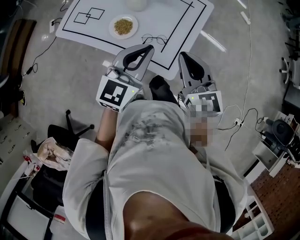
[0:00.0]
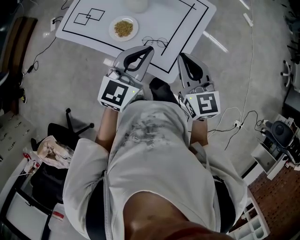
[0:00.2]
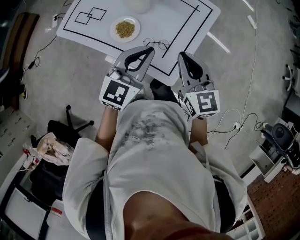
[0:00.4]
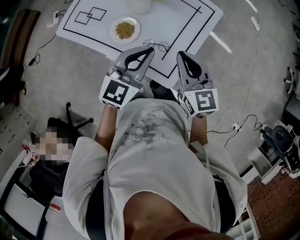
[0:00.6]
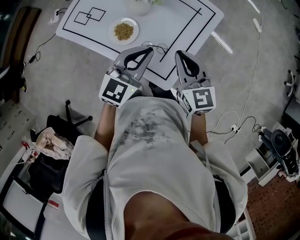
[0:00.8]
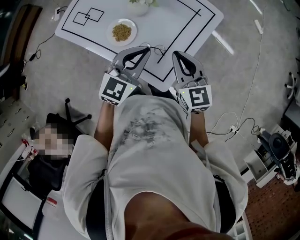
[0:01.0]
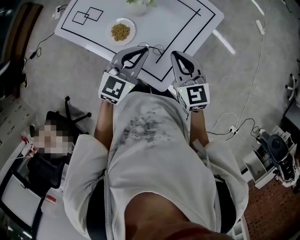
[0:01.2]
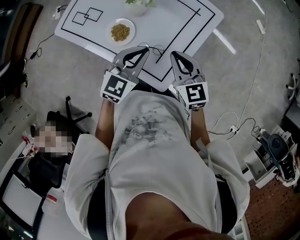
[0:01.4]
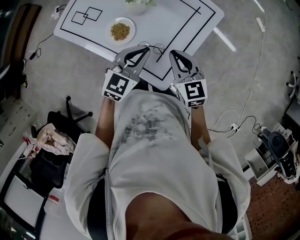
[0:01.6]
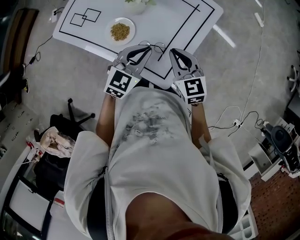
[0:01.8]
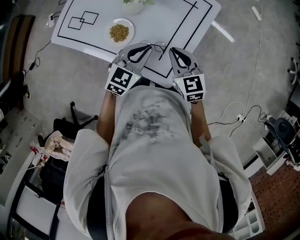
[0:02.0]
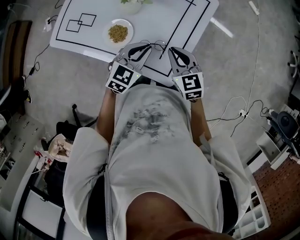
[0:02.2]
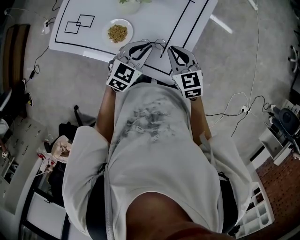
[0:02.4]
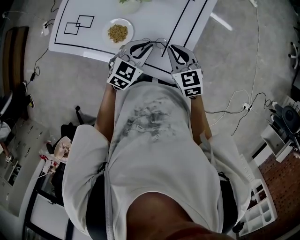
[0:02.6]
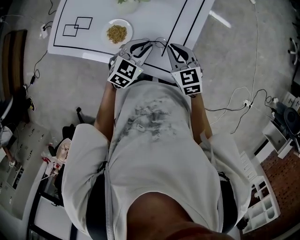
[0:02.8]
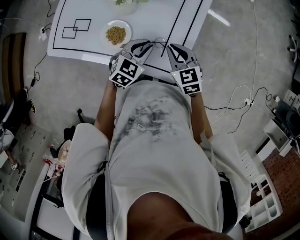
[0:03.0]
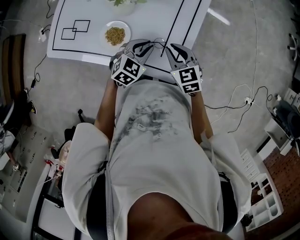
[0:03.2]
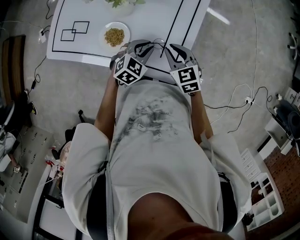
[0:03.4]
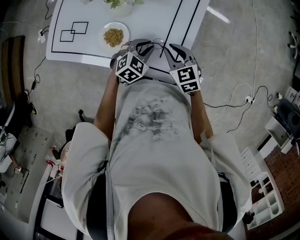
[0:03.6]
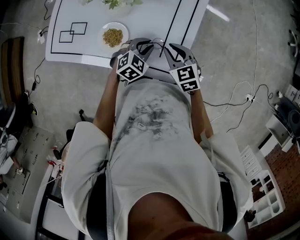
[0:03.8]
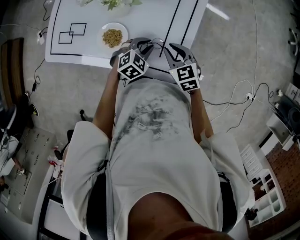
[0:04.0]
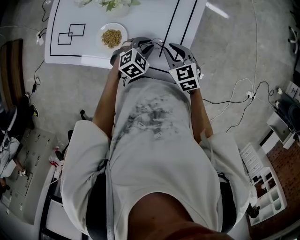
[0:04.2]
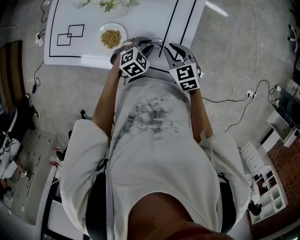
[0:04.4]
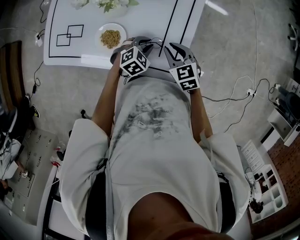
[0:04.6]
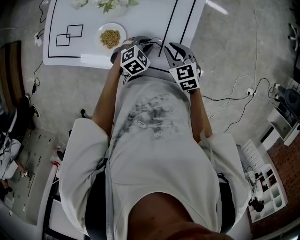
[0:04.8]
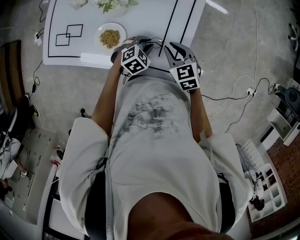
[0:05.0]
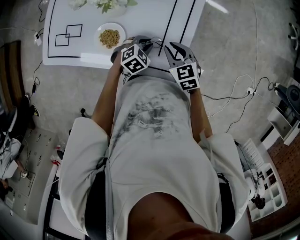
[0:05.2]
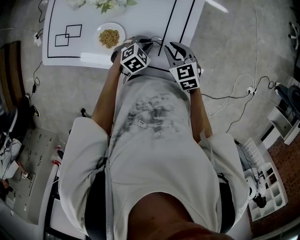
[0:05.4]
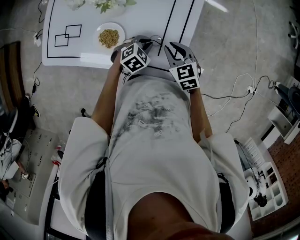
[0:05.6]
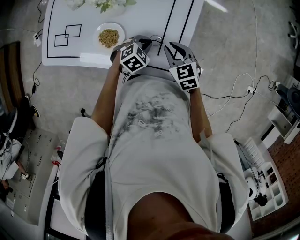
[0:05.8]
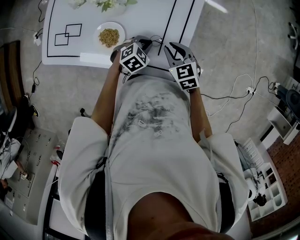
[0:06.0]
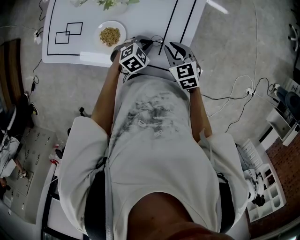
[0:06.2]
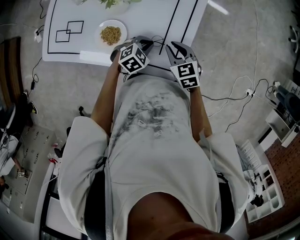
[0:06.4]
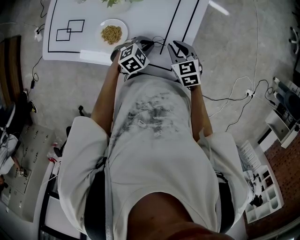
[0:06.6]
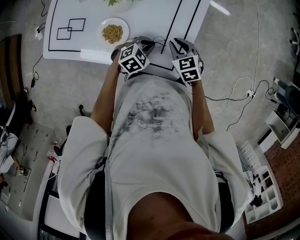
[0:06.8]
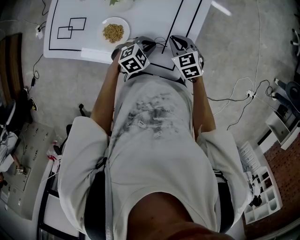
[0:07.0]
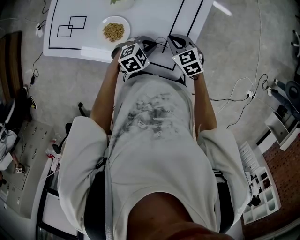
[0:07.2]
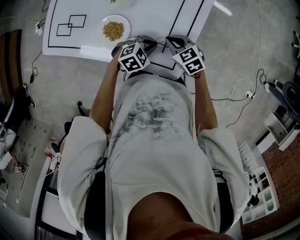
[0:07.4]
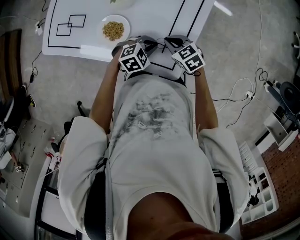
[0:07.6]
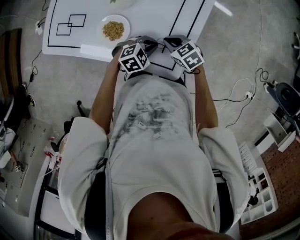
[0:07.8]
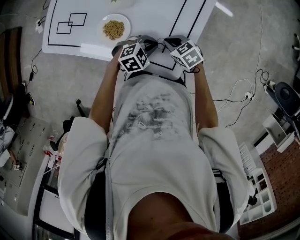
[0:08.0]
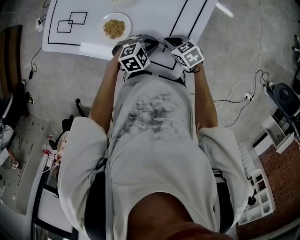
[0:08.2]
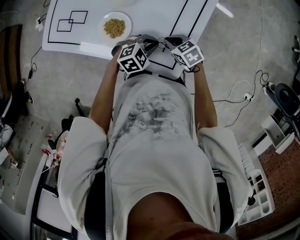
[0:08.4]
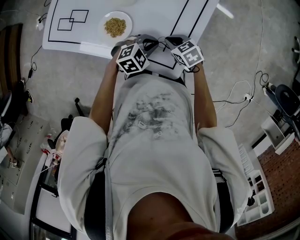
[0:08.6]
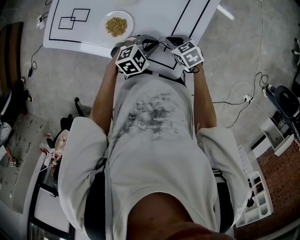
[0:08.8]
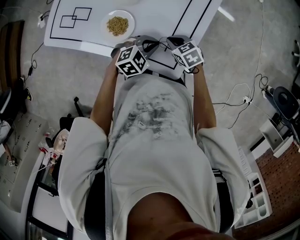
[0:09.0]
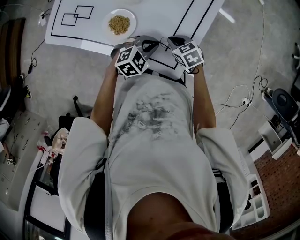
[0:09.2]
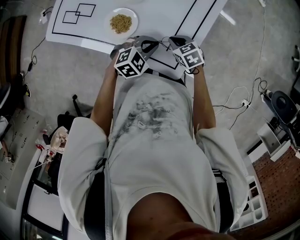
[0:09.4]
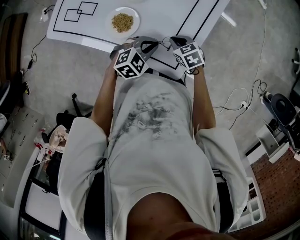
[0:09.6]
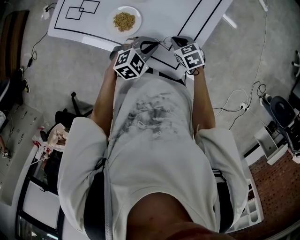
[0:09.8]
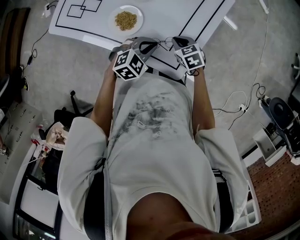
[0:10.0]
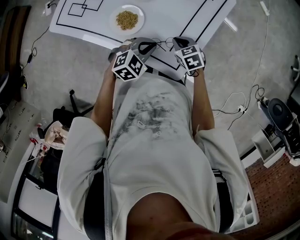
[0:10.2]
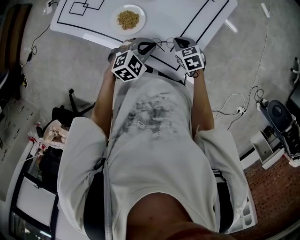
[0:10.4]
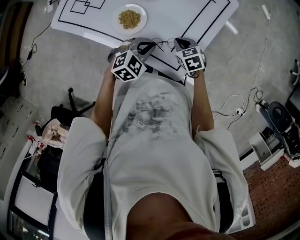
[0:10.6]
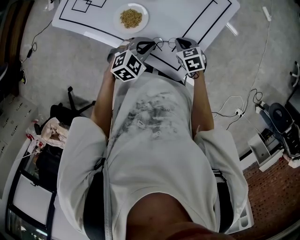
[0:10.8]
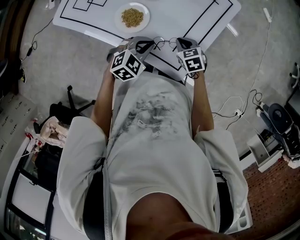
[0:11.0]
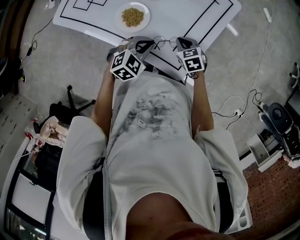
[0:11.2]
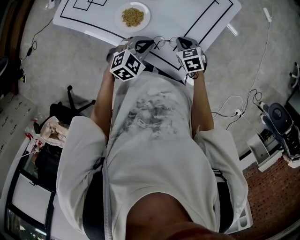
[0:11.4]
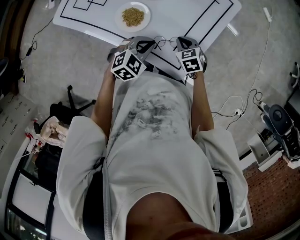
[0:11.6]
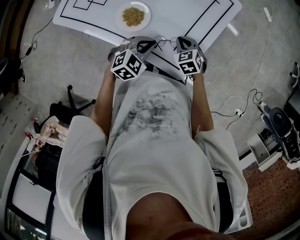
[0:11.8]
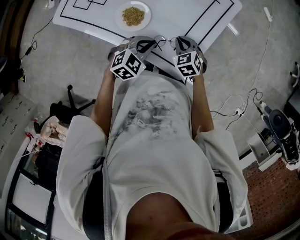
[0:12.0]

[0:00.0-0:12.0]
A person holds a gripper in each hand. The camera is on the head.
0:00.0 to 0:01.6: Both grippers travel together downward and forward, approximately 15 cm.
0:01.6 to 0:03.0: The grippers both shift downward by roughly 10 cm. The left gripper turns by approximately 20 degrees.
0:03.0 to 0:04.4: The left gripper travels downward by approximately 10 cm, and turns by some 20 degrees.
0:04.4 to 0:06.0: There are only small adjustments of the grippers.
0:06.0 to 0:07.6: The right gripper shifts by roughly 5 cm, and rotates roughly 20 degrees.
0:07.6 to 0:09.0: The grippers make only small movements.
0:09.0 to 0:10.4: The left gripper moves roughly 5 cm.
0:10.4 to 0:12.0: The grippers make only small movements.

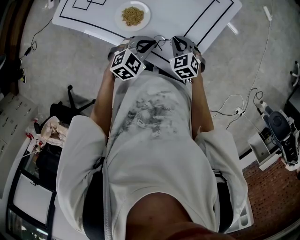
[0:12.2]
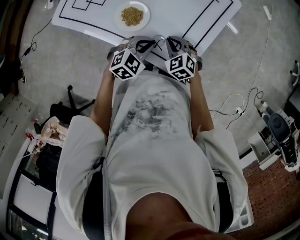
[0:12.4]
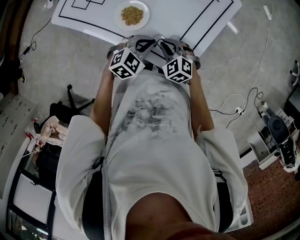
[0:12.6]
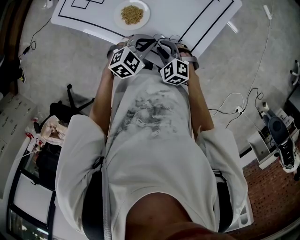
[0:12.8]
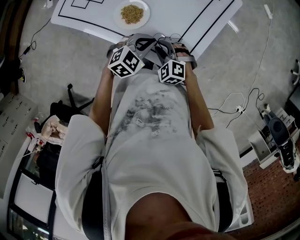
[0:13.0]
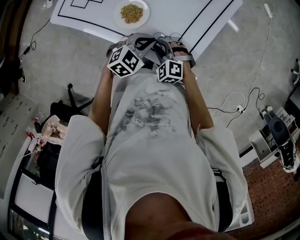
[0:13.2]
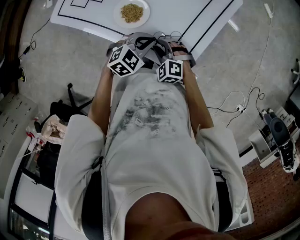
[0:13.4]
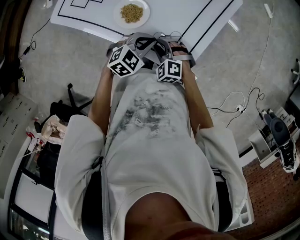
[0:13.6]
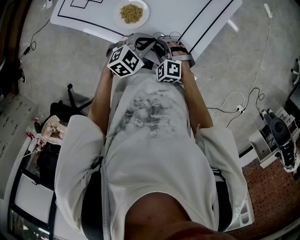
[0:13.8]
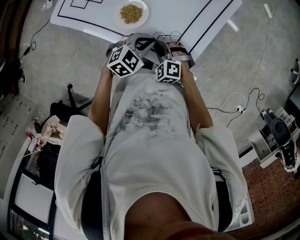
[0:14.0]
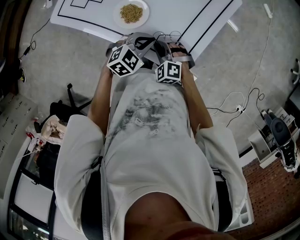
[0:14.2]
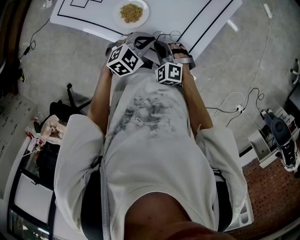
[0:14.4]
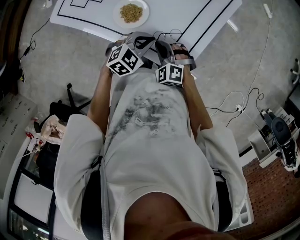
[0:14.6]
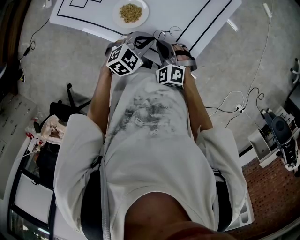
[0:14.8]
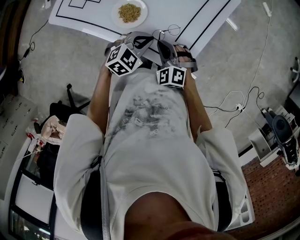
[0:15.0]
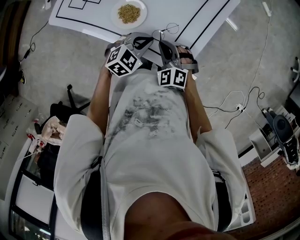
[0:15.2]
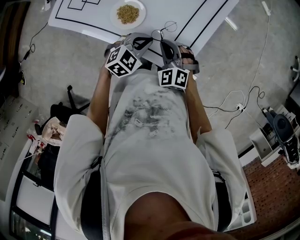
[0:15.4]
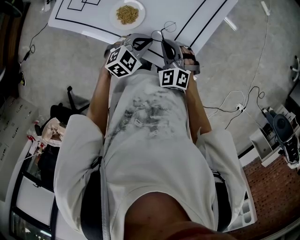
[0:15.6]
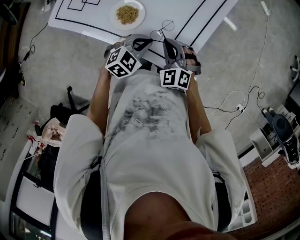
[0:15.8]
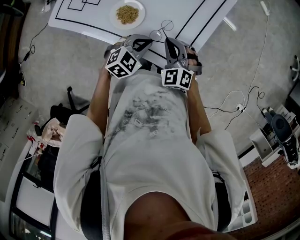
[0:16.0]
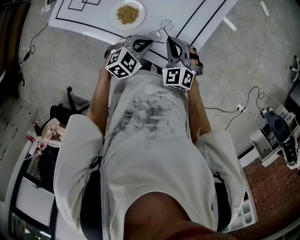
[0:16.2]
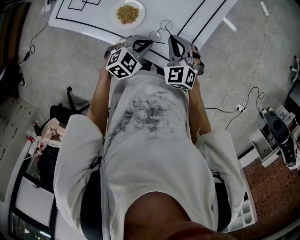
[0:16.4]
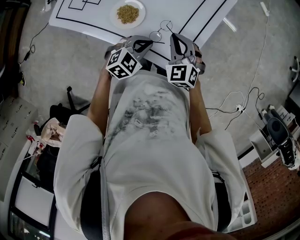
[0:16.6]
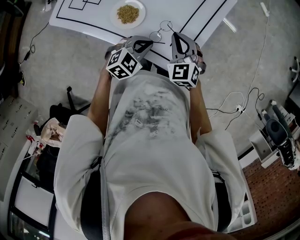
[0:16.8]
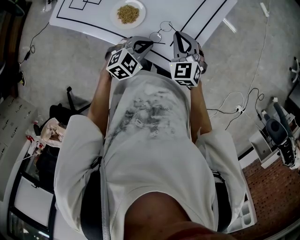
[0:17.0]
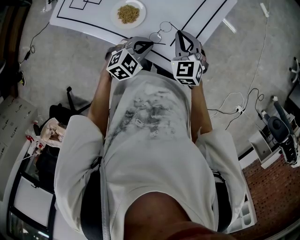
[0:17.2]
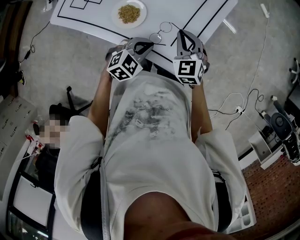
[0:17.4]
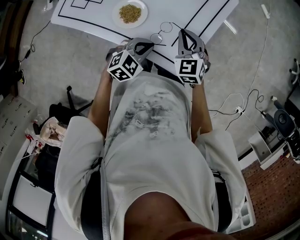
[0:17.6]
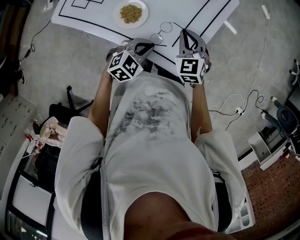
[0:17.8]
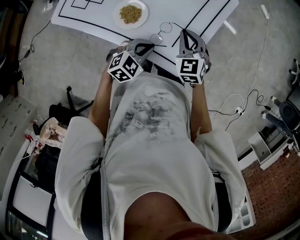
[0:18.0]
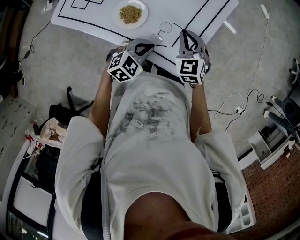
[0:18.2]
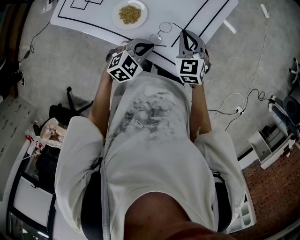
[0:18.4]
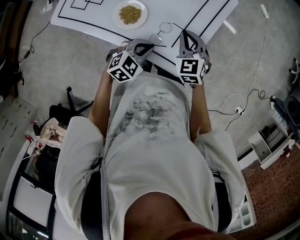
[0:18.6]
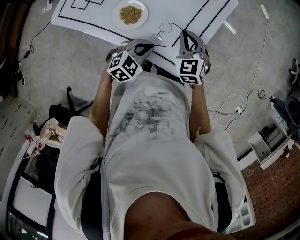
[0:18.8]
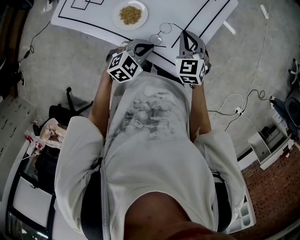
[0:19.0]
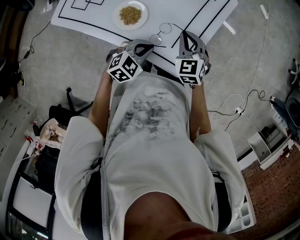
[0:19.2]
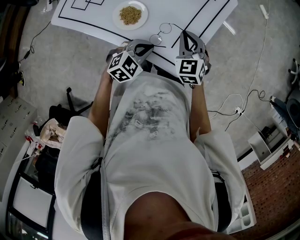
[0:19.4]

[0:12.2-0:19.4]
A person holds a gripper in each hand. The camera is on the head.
0:12.2 to 0:13.6: The right gripper is displaced backward and to the left by roughly 10 cm, changes its angle by roughly 30 degrees, and opens its fingers.
0:13.6 to 0:15.0: The right gripper goes some 5 cm upward, and closes its fingers.
0:15.0 to 0:16.6: The right gripper heads upward and forward, covering about 10 cm, and changes its angle by roughly 20 degrees.
0:16.6 to 0:18.0: The grippers stay close to where they were, moving slightly.
0:18.0 to 0:19.4: Both grippers stay about where they are.

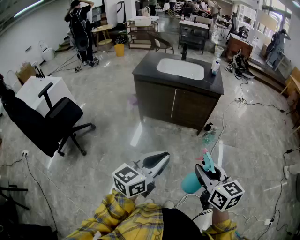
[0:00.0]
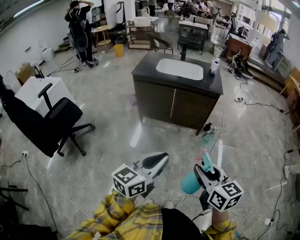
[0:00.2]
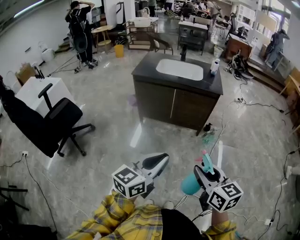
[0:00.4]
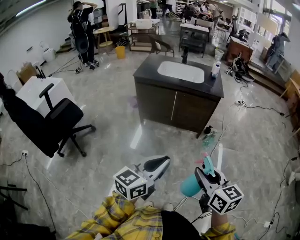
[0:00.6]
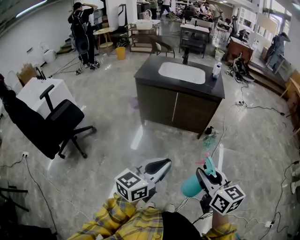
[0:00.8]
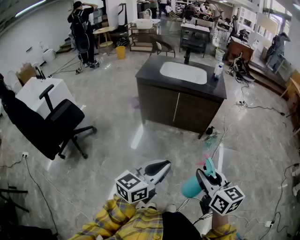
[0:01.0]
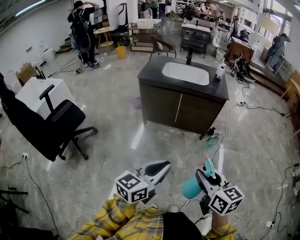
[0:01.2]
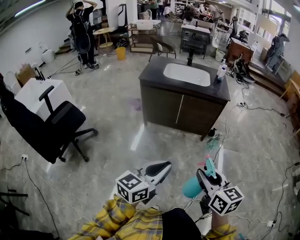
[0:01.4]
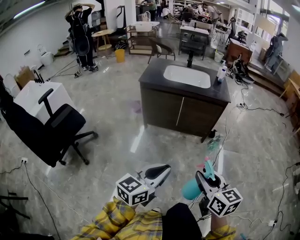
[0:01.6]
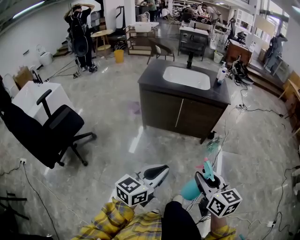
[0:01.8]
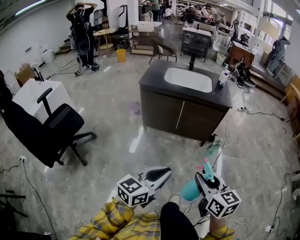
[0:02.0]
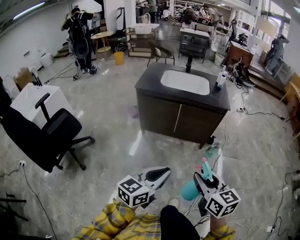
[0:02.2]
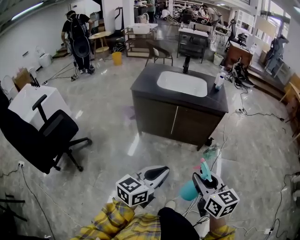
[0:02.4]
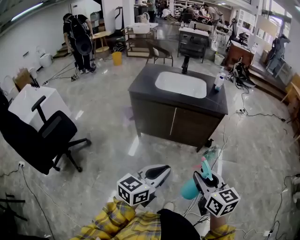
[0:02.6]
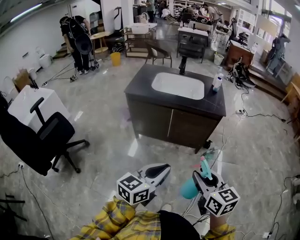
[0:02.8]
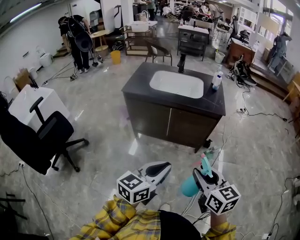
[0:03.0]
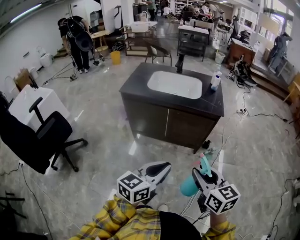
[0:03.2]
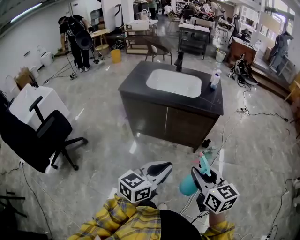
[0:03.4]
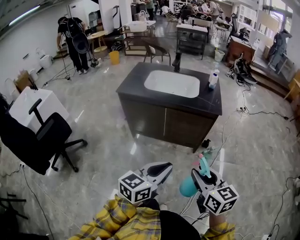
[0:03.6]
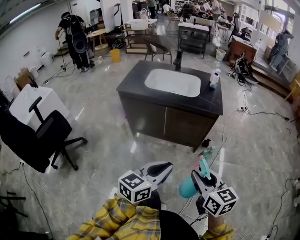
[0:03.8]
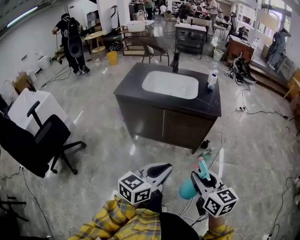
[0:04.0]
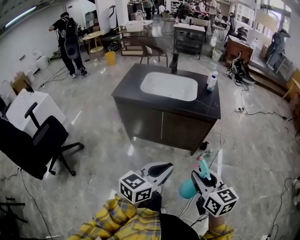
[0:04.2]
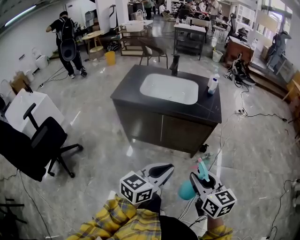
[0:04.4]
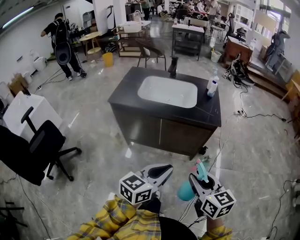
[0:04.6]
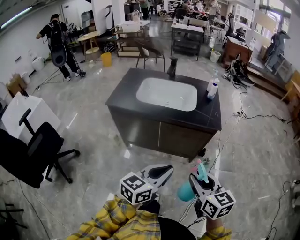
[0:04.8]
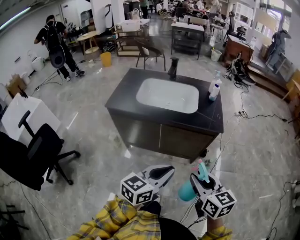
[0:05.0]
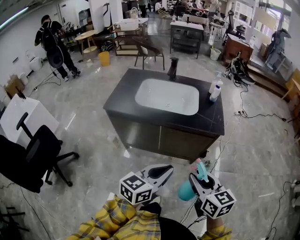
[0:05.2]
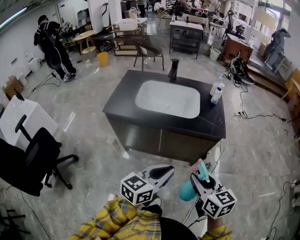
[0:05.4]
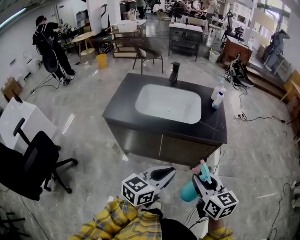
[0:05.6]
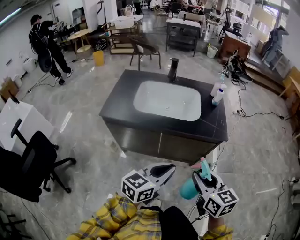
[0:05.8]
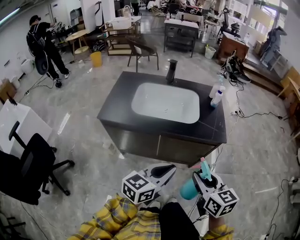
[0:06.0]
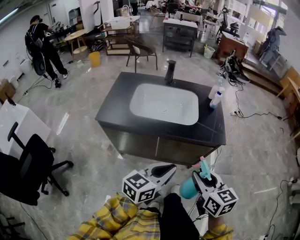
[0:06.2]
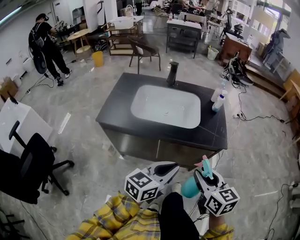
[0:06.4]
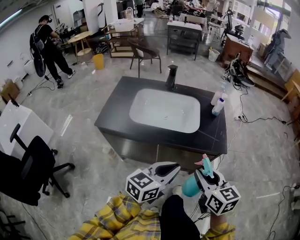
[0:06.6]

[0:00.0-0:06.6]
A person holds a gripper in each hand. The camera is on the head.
0:00.0 to 0:01.6: Both grippers move to the left, approximately 10 cm.
0:01.6 to 0:03.2: The two grippers go some 25 cm forward and to the right.
0:03.2 to 0:05.0: The grippers both shift forward by some 15 cm.
0:05.0 to 0:06.6: The grippers both shift forward by roughly 20 cm.
